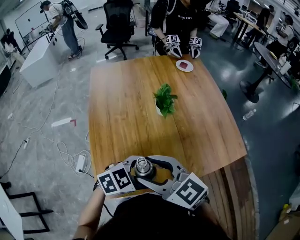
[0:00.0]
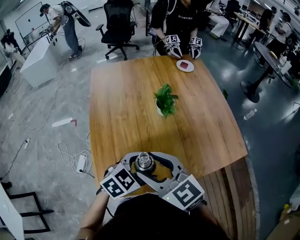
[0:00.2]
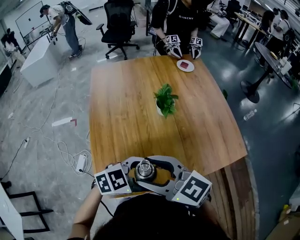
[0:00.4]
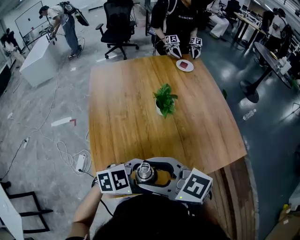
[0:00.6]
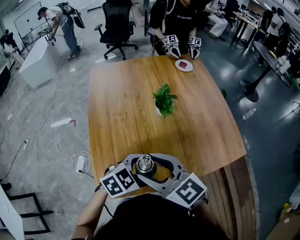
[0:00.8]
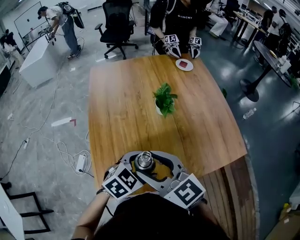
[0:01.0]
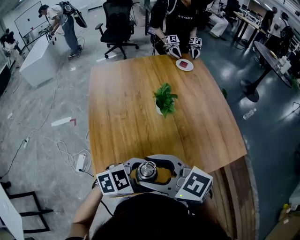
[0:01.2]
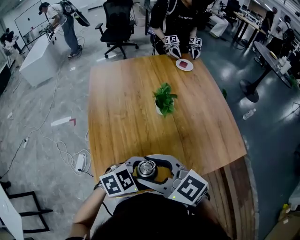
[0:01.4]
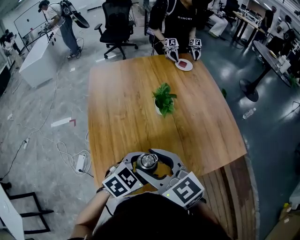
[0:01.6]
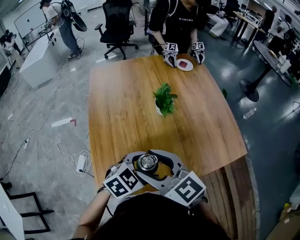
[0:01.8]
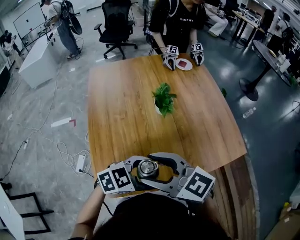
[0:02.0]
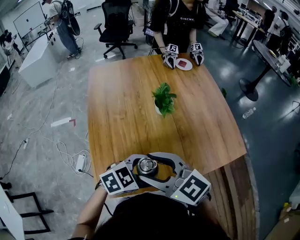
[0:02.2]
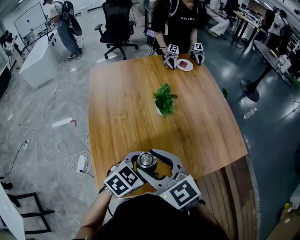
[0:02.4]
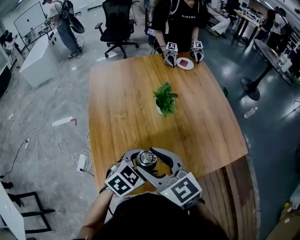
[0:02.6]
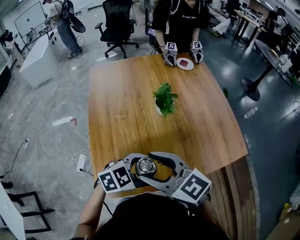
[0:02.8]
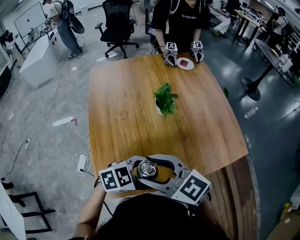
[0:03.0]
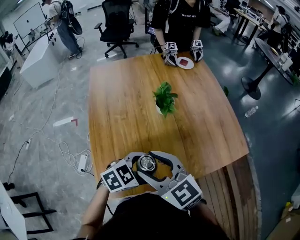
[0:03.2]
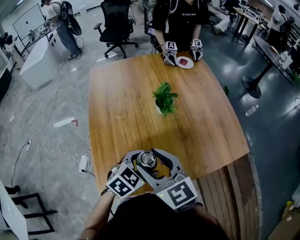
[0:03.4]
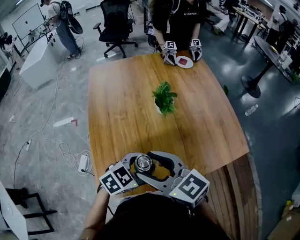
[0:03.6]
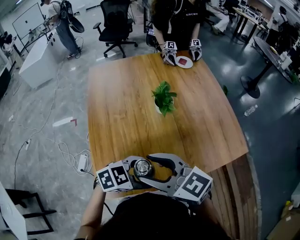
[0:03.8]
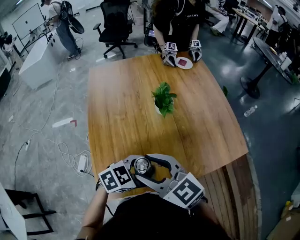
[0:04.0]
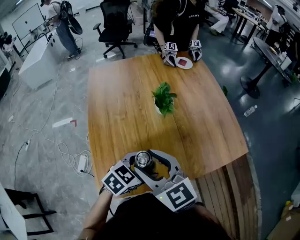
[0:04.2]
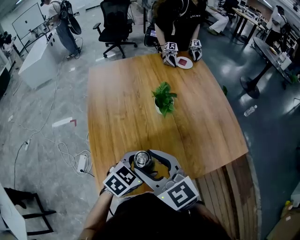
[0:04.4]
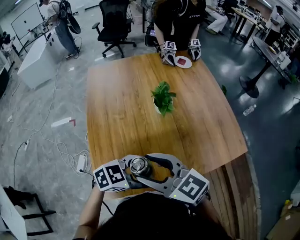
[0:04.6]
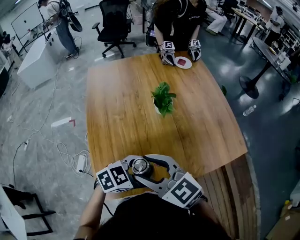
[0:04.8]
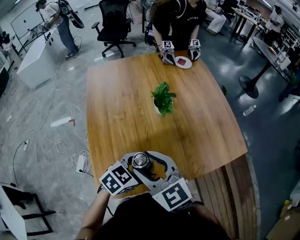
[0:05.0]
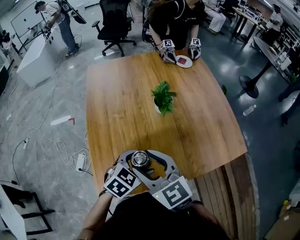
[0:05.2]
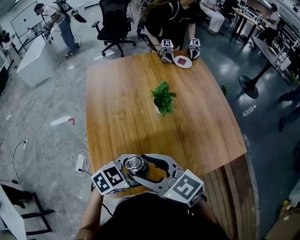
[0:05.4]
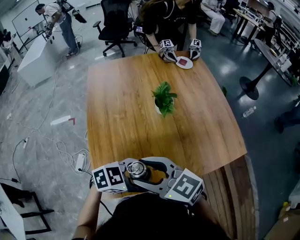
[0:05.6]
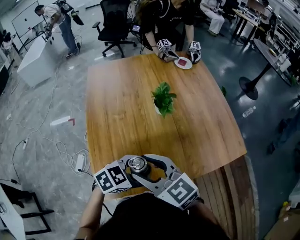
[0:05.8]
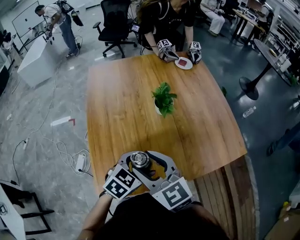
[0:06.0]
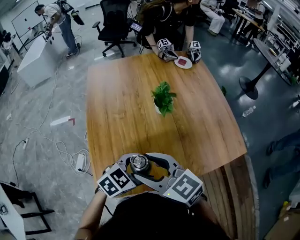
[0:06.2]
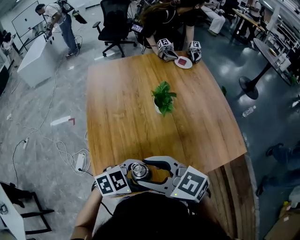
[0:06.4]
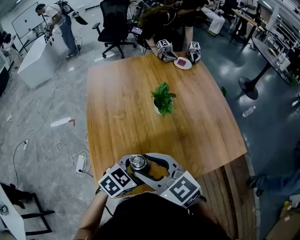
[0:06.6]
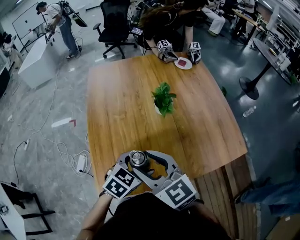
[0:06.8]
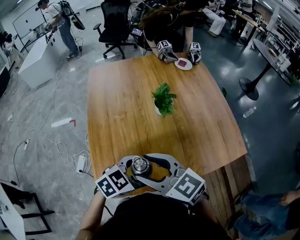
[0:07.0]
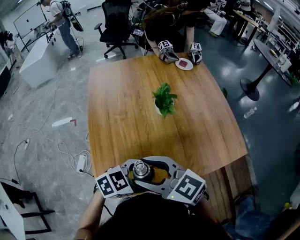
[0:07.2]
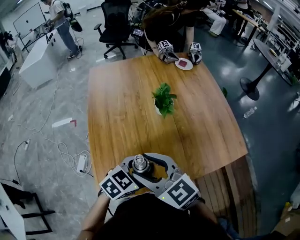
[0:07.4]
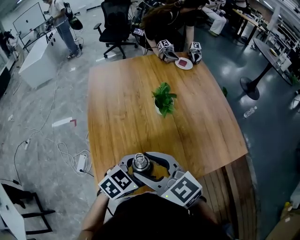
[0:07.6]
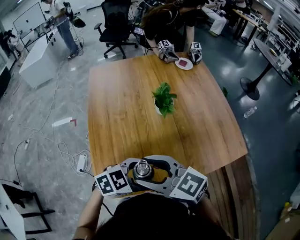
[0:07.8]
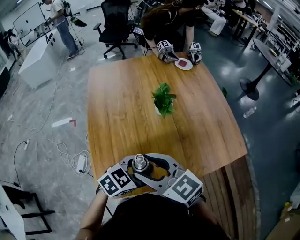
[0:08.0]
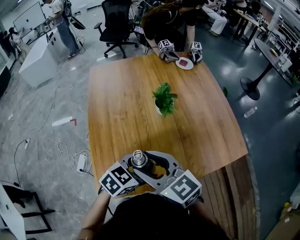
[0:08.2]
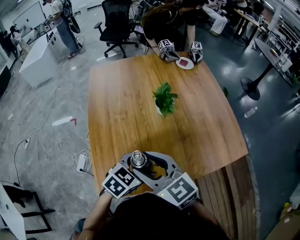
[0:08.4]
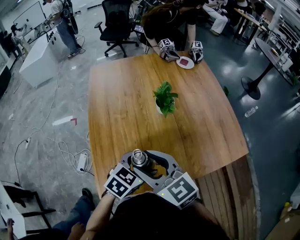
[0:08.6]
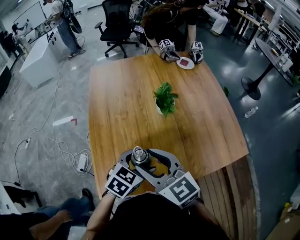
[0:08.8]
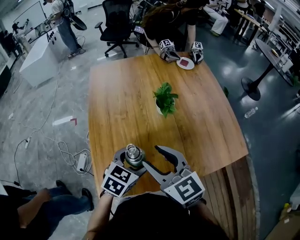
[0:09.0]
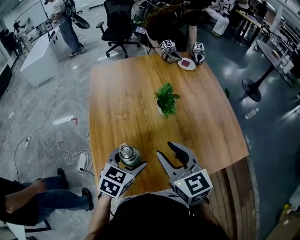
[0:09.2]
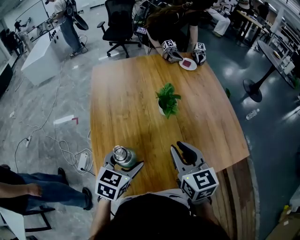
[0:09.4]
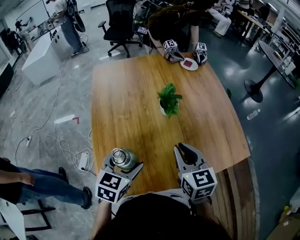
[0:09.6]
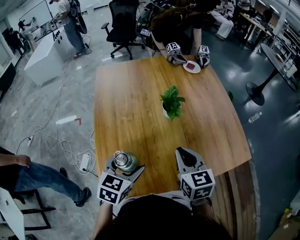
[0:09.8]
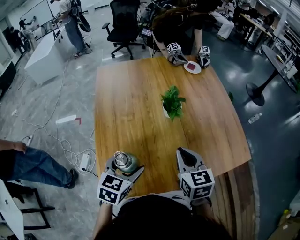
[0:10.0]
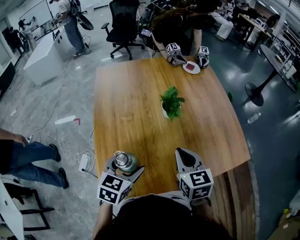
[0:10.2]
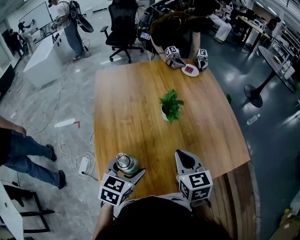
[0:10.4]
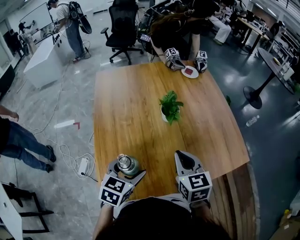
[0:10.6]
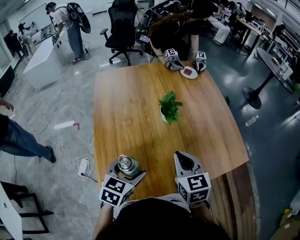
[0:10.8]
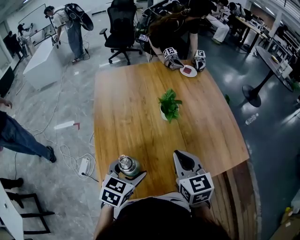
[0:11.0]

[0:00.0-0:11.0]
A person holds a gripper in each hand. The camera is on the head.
0:00.0 to 0:01.6: The grippers stay close to where they were, moving slightly.
0:03.2 to 0:04.8: The grippers make only small movements.
0:06.2 to 0:07.8: There are only small adjustments of the grippers.
0:07.8 to 0:09.4: The right gripper shifts by about 15 cm, turns by roughly 40 degrees, and closes up; the left gripper changes place by about 10 cm, and rotates roughly 50 degrees.
0:09.4 to 0:11.0: The grippers stay close to where they were, moving slightly.

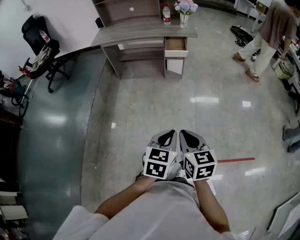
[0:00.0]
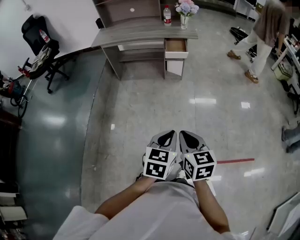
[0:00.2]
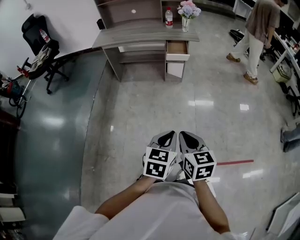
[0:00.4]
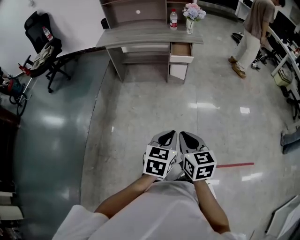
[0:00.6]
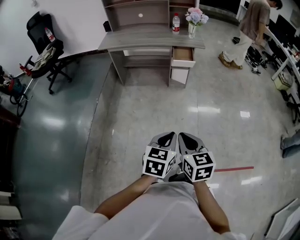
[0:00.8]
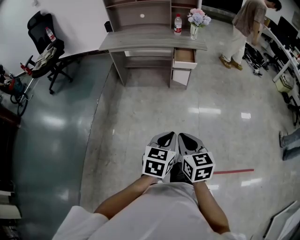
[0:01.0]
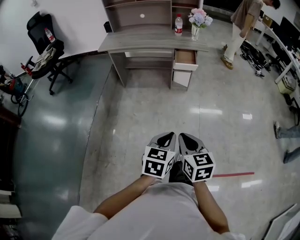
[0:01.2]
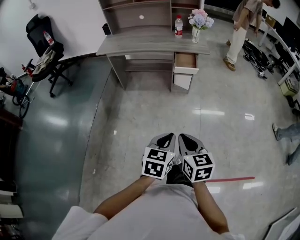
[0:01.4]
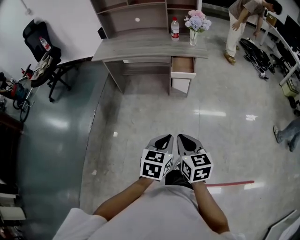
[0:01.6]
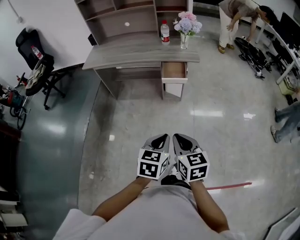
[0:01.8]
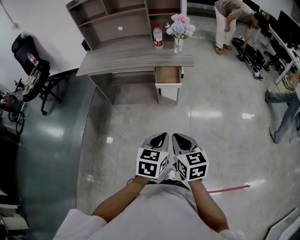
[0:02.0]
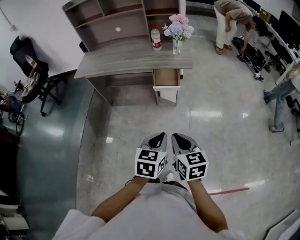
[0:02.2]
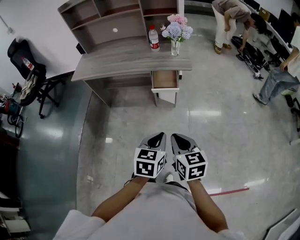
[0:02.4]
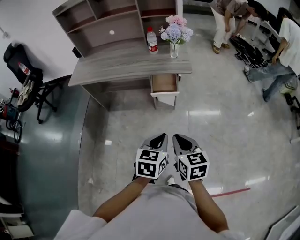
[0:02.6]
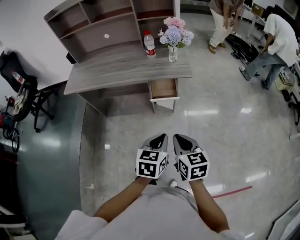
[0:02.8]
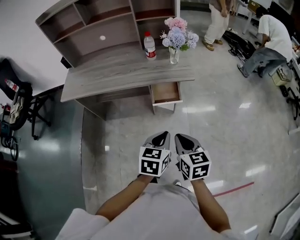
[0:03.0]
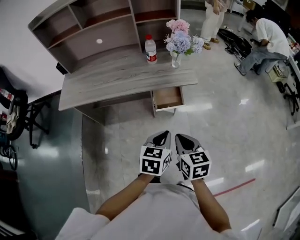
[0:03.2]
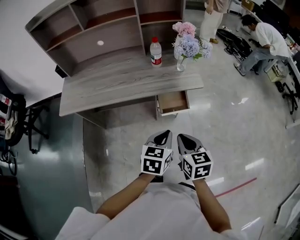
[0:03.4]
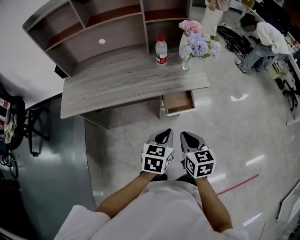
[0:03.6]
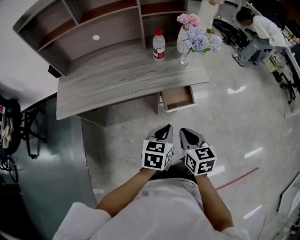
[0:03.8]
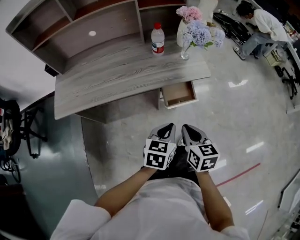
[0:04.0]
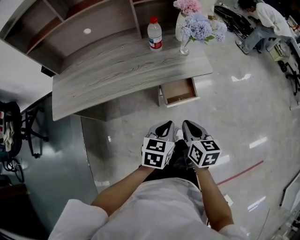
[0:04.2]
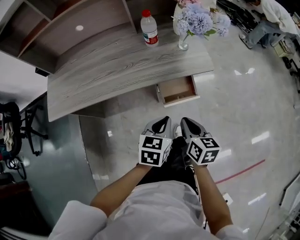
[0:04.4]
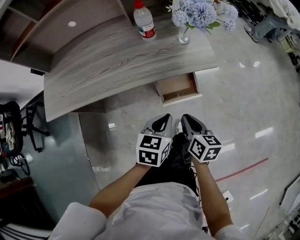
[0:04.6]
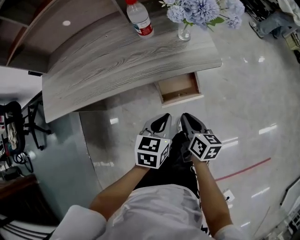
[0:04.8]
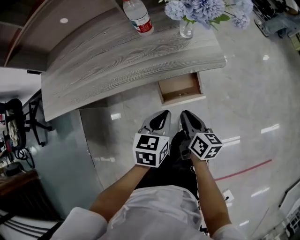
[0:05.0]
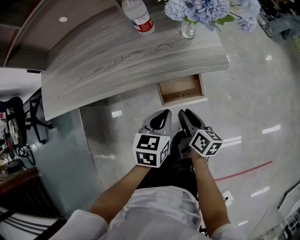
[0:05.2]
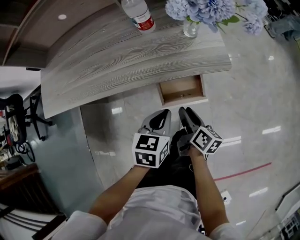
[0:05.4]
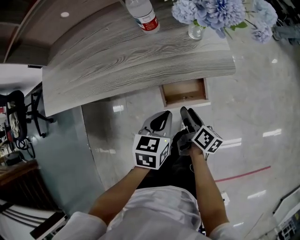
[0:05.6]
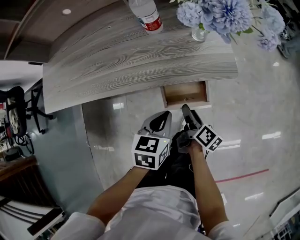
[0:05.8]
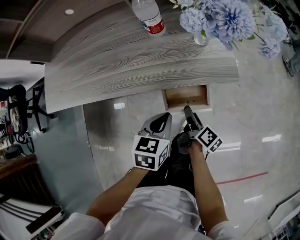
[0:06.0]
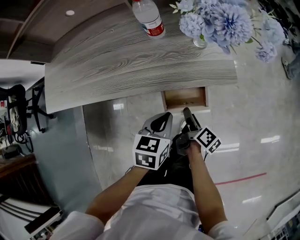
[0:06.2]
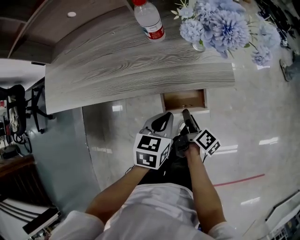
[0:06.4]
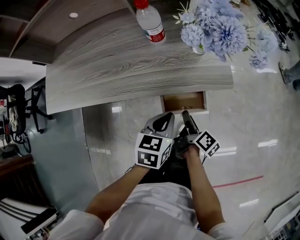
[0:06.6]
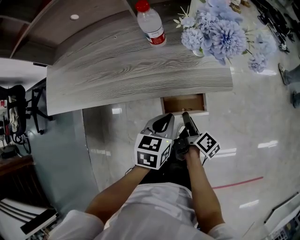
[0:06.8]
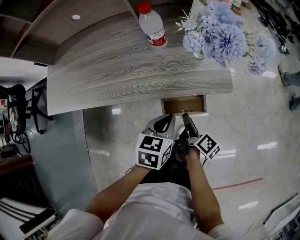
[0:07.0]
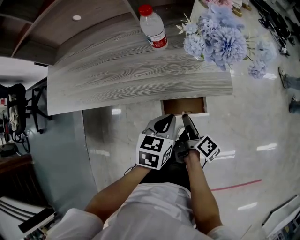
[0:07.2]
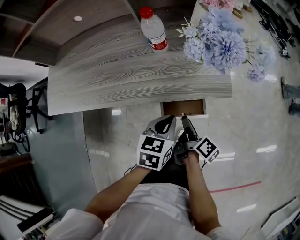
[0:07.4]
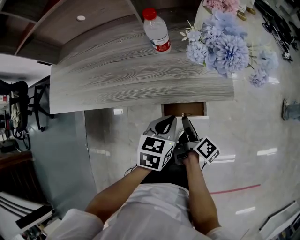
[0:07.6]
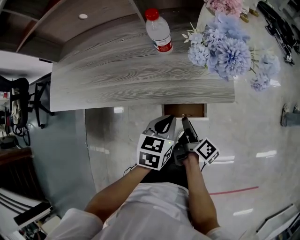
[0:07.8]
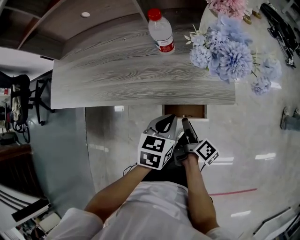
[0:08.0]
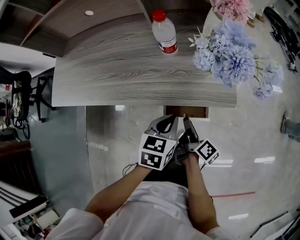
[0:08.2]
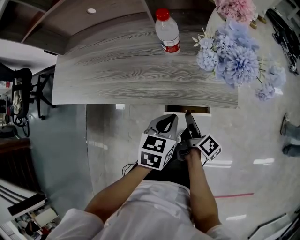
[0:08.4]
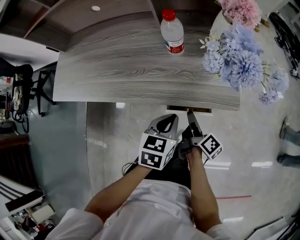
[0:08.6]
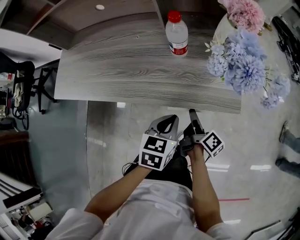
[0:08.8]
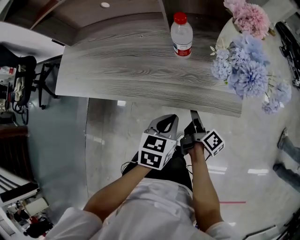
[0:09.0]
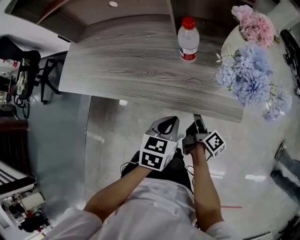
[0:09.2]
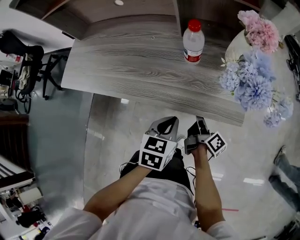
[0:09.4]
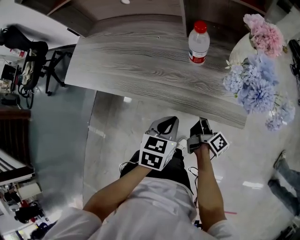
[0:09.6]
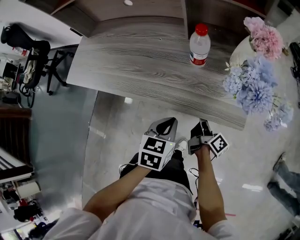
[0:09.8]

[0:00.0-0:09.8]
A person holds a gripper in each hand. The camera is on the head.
0:00.0 to 0:01.4: The two grippers go roughly 15 cm forward and to the left.
0:01.4 to 0:02.8: The two grippers go roughly 30 cm forward.
0:02.8 to 0:04.2: The right gripper moves forward, to the left and downward, about 20 cm, and turns by roughly 20 degrees, while the left gripper travels forward and to the left by roughly 20 cm.
0:04.2 to 0:05.6: The left gripper travels forward and downward by roughly 15 cm. Meanwhile the right gripper goes approximately 20 cm downward and forward, rotates around the line of its fingers by roughly 40 degrees, clockwise from behind, and opens up.
0:05.6 to 0:07.0: The grippers make only small movements.
0:07.0 to 0:08.4: The grippers stay close to where they were, moving slightly.
0:08.4 to 0:09.8: The left gripper ends up approximately 5 cm from where it was. The right gripper travels forward by about 5 cm.

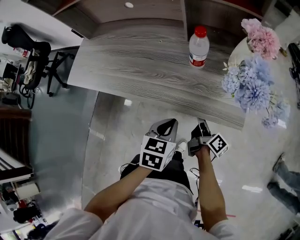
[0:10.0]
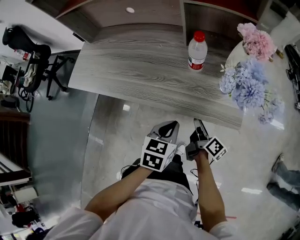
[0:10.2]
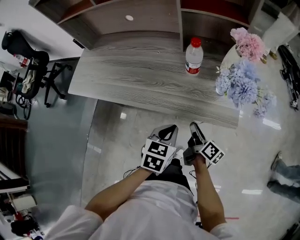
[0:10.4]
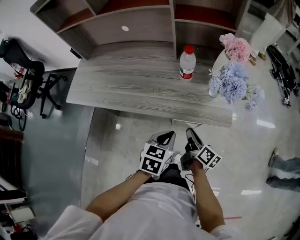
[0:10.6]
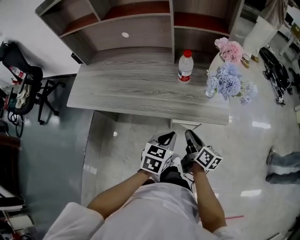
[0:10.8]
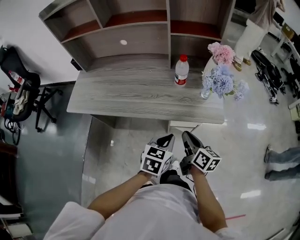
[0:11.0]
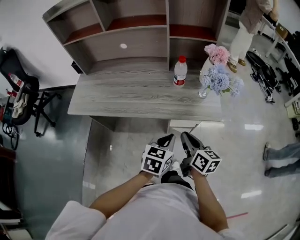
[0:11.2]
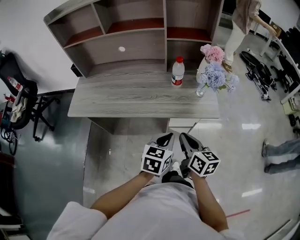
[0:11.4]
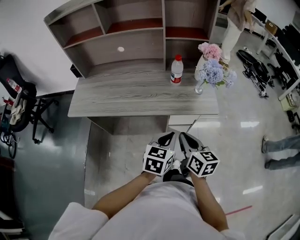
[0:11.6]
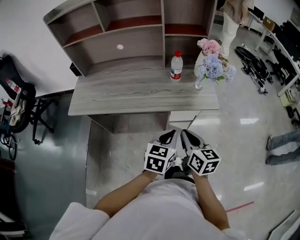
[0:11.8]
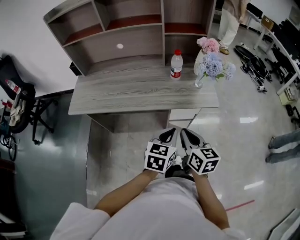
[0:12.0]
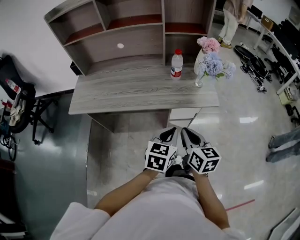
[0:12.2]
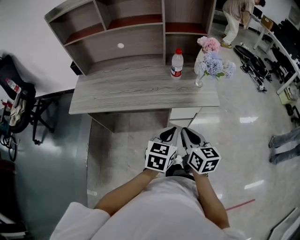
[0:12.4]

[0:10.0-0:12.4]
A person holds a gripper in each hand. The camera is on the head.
0:10.0 to 0:11.2: The left gripper heads upward and backward, covering roughly 10 cm, and rotates some 20 degrees, while the right gripper heads upward and backward, covering approximately 25 cm, swivels some 40 degrees, and closes its fingers.
0:11.2 to 0:12.4: Both grippers travel together backward, some 5 cm.
